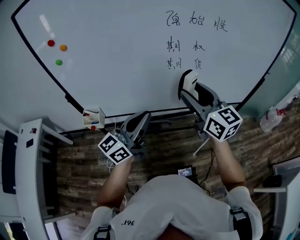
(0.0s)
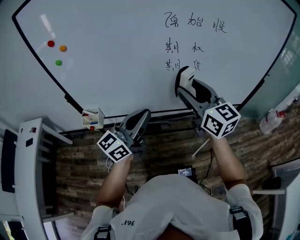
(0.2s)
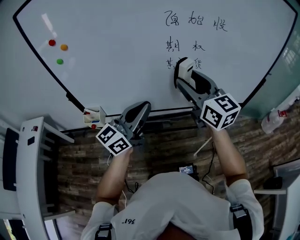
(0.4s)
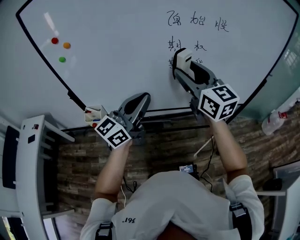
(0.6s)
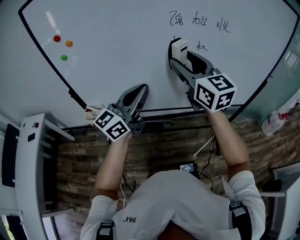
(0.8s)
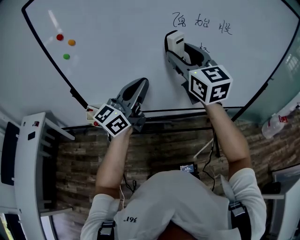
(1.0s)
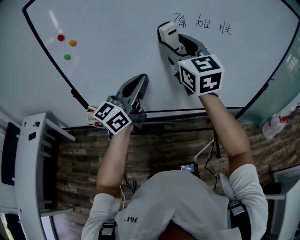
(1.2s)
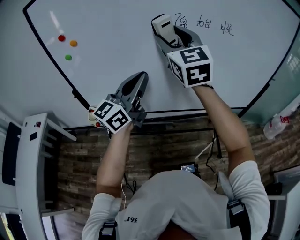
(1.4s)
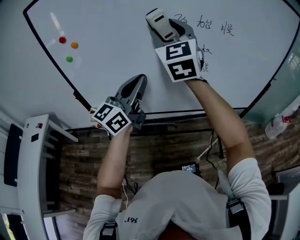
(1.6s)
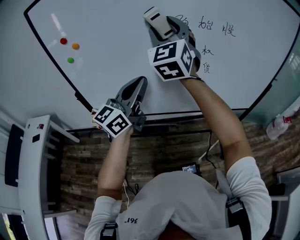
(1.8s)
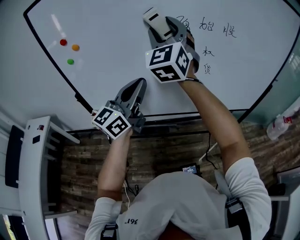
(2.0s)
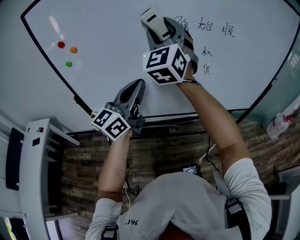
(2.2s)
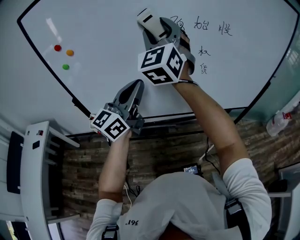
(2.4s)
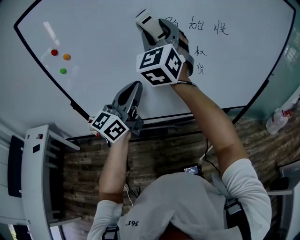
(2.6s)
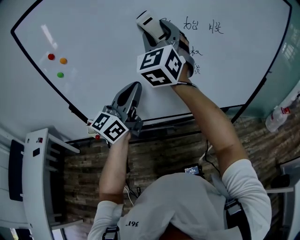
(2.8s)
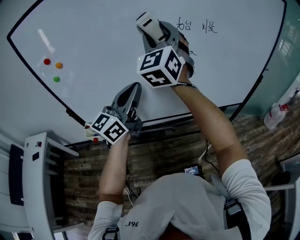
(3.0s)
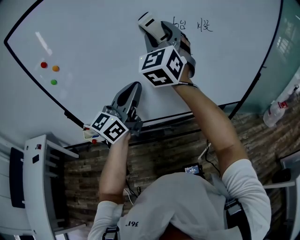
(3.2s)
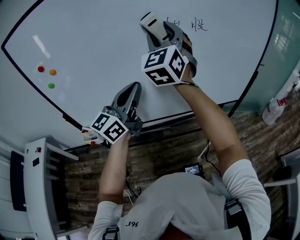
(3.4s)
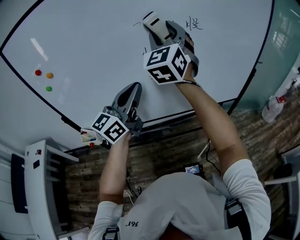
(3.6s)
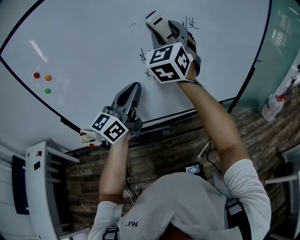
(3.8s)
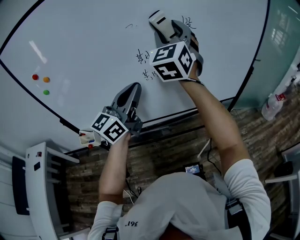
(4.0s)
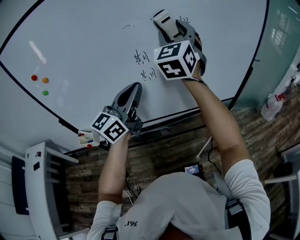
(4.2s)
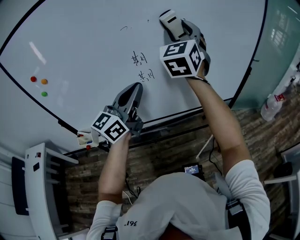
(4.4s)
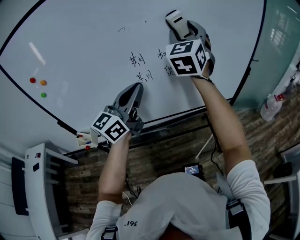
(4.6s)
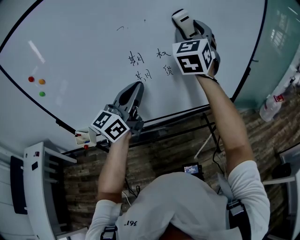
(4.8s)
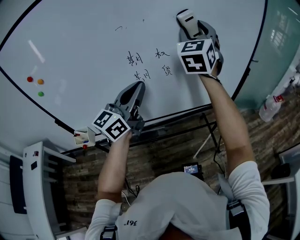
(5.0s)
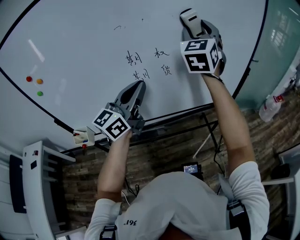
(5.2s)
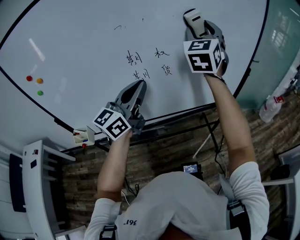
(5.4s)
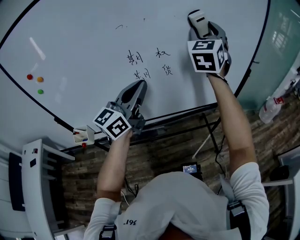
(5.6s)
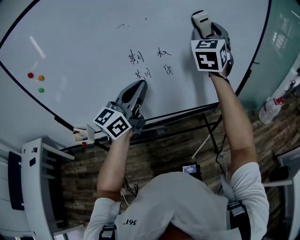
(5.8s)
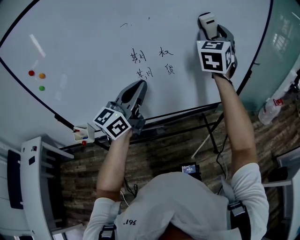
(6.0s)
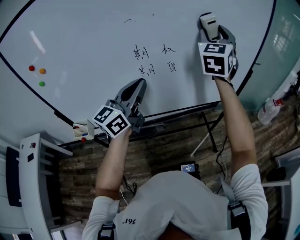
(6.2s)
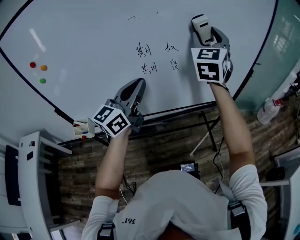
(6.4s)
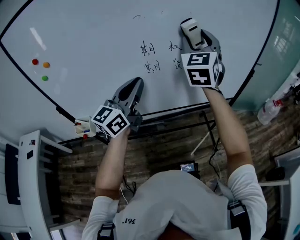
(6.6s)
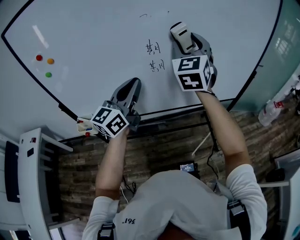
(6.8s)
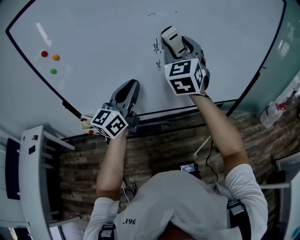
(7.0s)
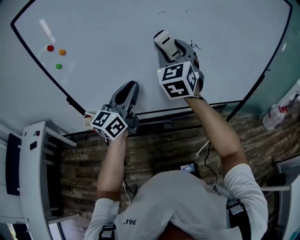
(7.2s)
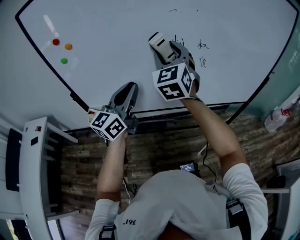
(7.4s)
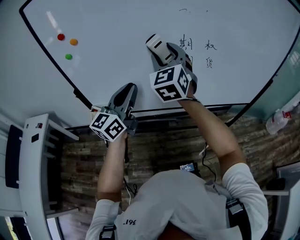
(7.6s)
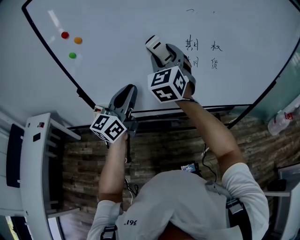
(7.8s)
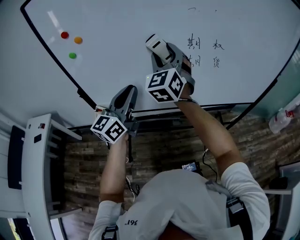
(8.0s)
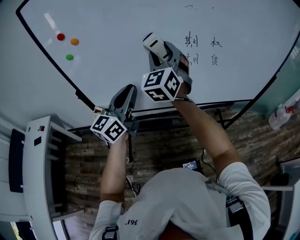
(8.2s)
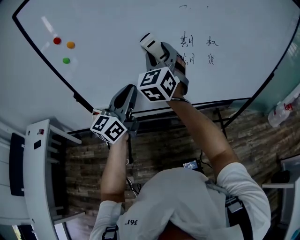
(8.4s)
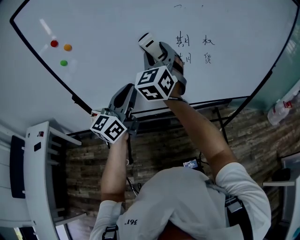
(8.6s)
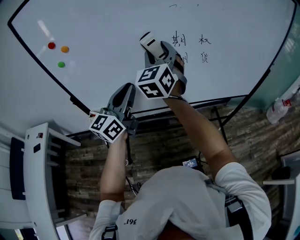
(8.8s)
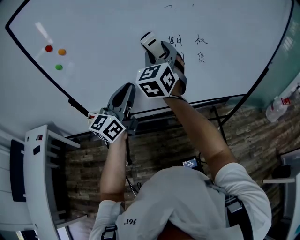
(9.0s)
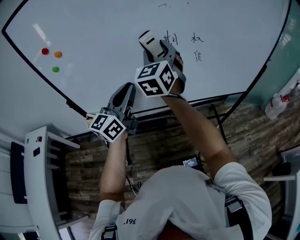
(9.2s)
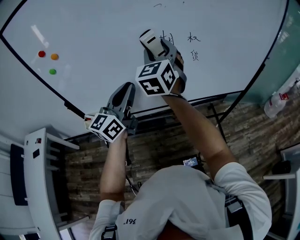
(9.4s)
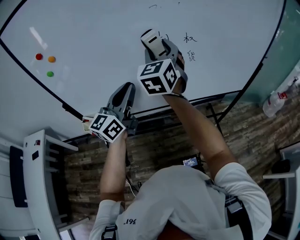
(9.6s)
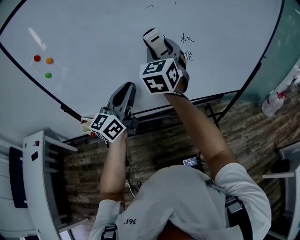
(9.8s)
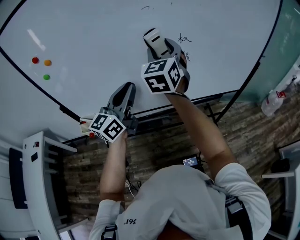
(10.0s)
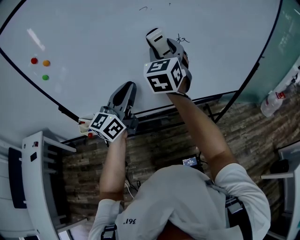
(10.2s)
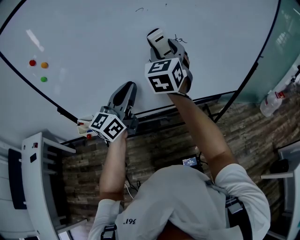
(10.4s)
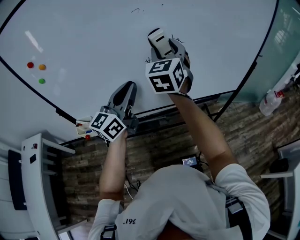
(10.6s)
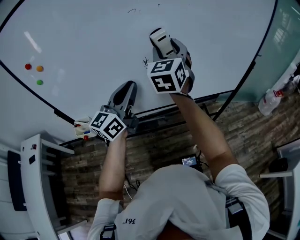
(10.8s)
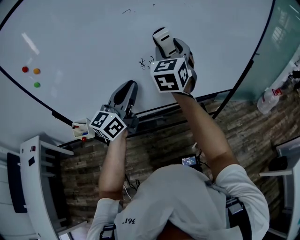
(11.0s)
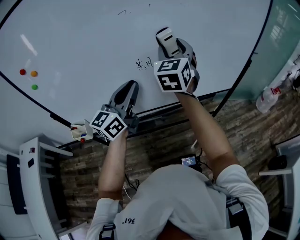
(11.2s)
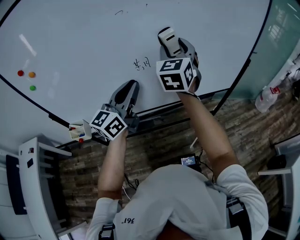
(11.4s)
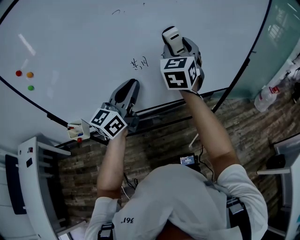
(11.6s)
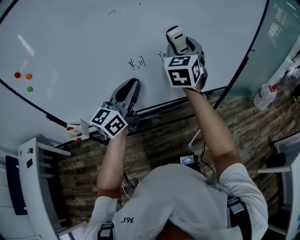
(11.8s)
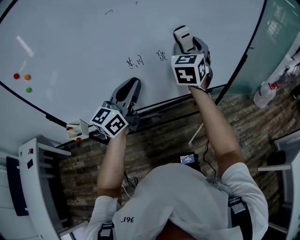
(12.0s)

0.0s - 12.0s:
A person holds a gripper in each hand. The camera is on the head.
0.0s - 1.6s: The left gripper is displaced upward and forward by some 10 cm. The right gripper heads upward, to the left and forward, covering approximately 25 cm, and turns by approximately 40 degrees.
1.6s - 3.0s: The right gripper shifts by approximately 5 cm.
3.0s - 4.4s: The right gripper goes about 20 cm to the right and forward; the left gripper travels to the right by about 10 cm.
4.4s - 6.0s: The right gripper heads to the right and forward, covering some 15 cm.
6.0s - 7.6s: The left gripper is displaced to the left and backward by some 20 cm. Meanwhile the right gripper moves to the left and backward, about 35 cm, and swivels roughly 30 degrees.
7.6s - 9.0s: The grippers move only a little.
9.0s - 10.4s: Both grippers move to the right, roughly 10 cm.
10.4s - 12.0s: The right gripper goes about 20 cm to the right and forward; the left gripper travels to the right by roughly 10 cm.

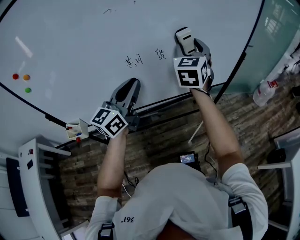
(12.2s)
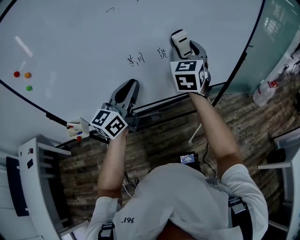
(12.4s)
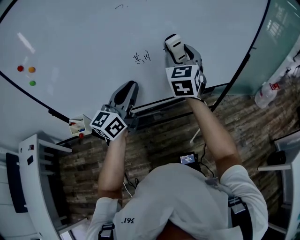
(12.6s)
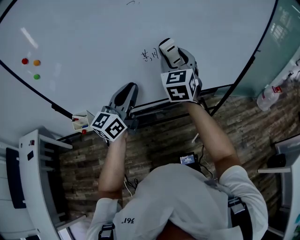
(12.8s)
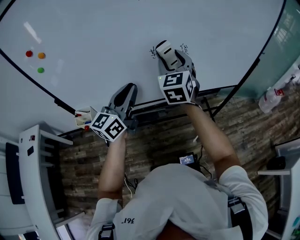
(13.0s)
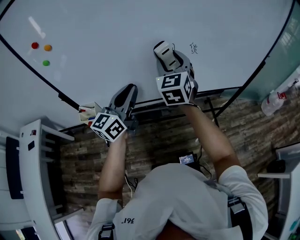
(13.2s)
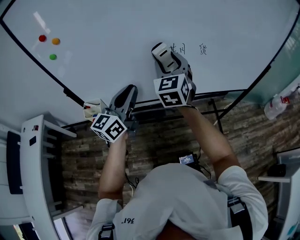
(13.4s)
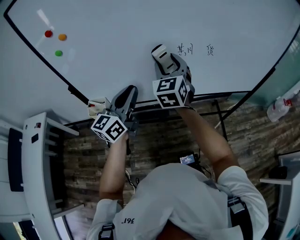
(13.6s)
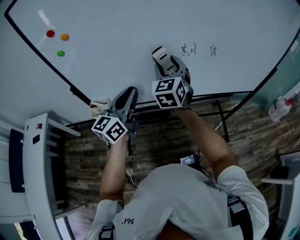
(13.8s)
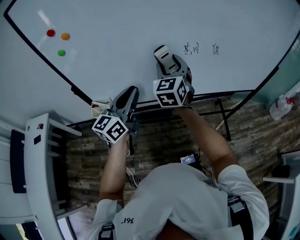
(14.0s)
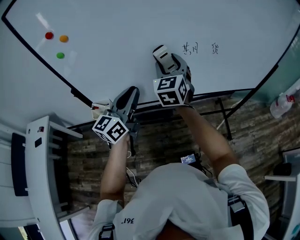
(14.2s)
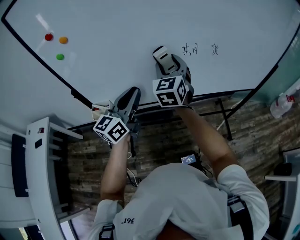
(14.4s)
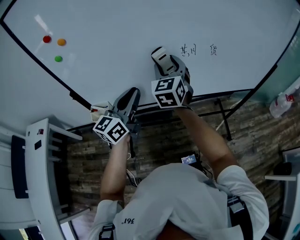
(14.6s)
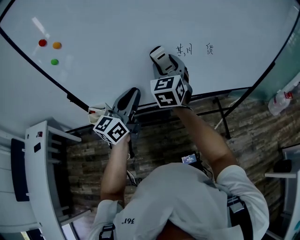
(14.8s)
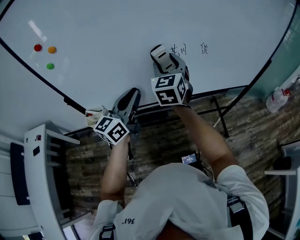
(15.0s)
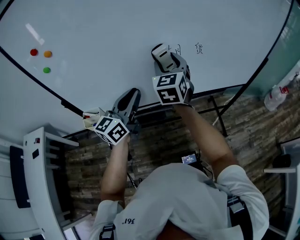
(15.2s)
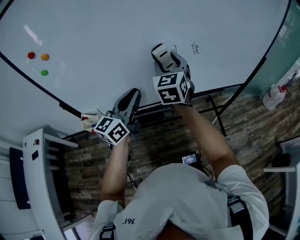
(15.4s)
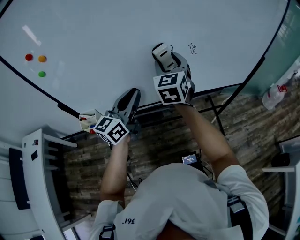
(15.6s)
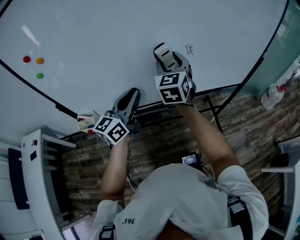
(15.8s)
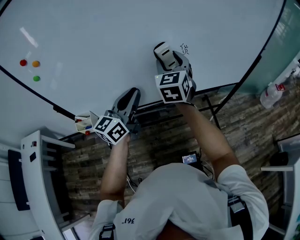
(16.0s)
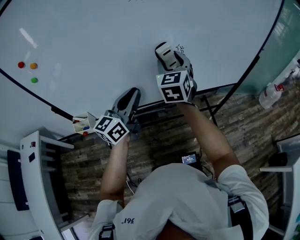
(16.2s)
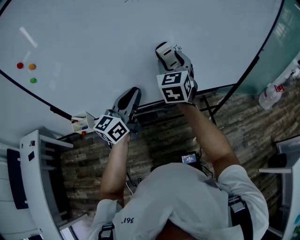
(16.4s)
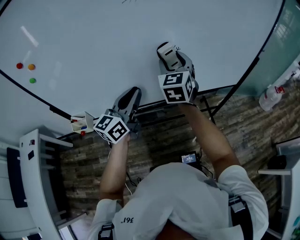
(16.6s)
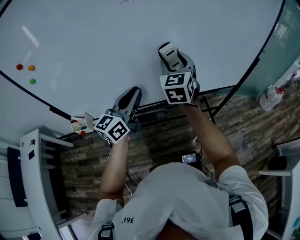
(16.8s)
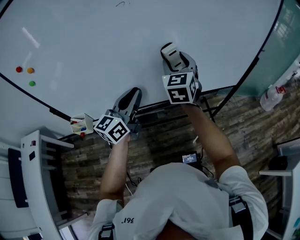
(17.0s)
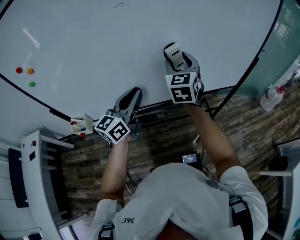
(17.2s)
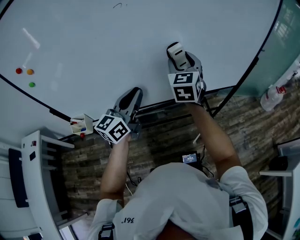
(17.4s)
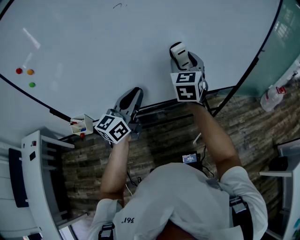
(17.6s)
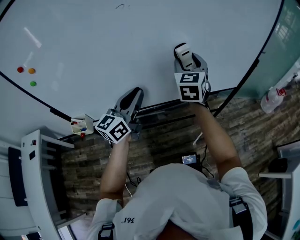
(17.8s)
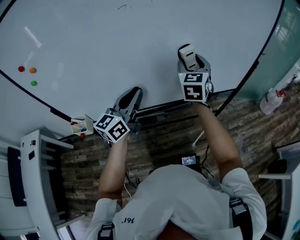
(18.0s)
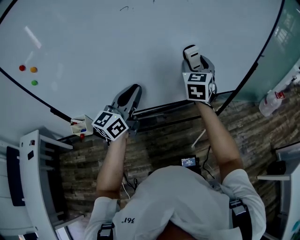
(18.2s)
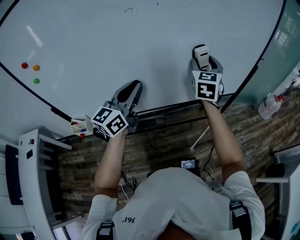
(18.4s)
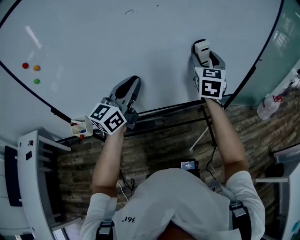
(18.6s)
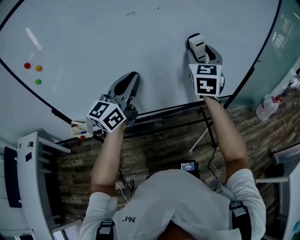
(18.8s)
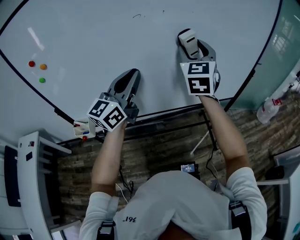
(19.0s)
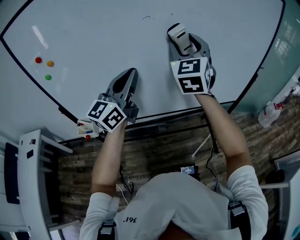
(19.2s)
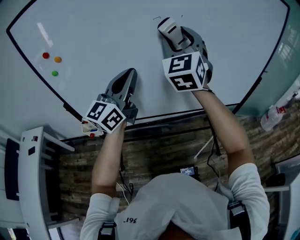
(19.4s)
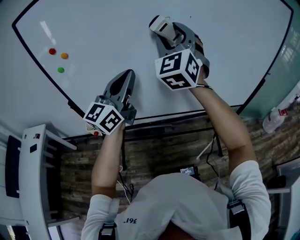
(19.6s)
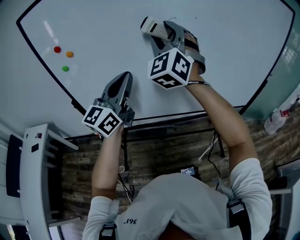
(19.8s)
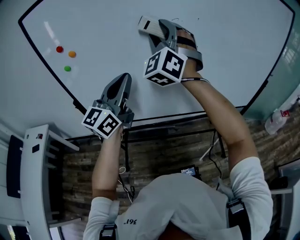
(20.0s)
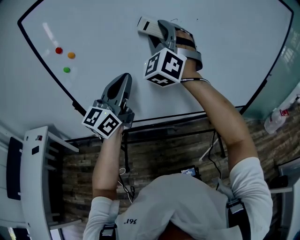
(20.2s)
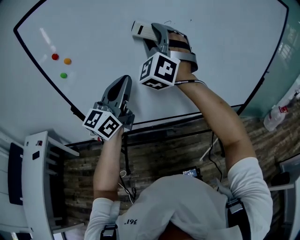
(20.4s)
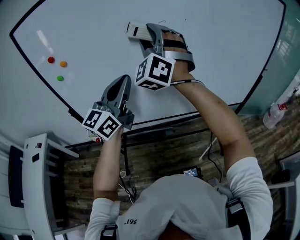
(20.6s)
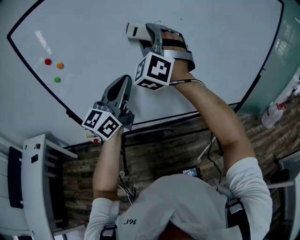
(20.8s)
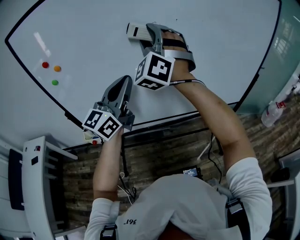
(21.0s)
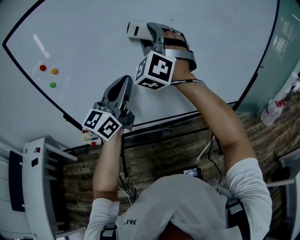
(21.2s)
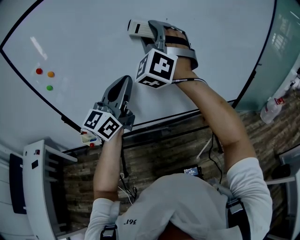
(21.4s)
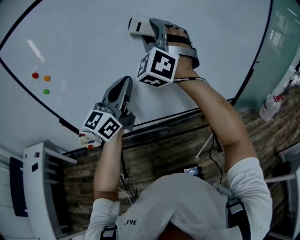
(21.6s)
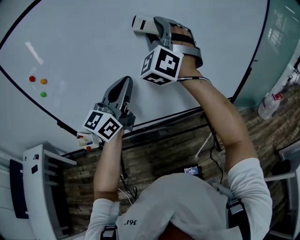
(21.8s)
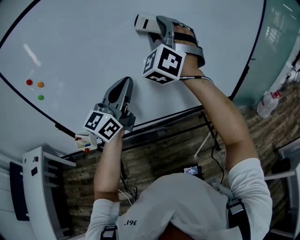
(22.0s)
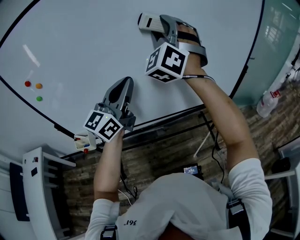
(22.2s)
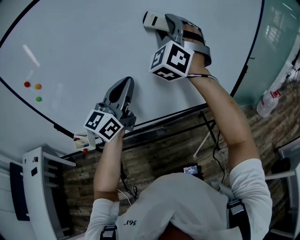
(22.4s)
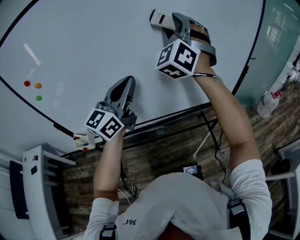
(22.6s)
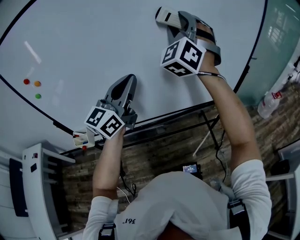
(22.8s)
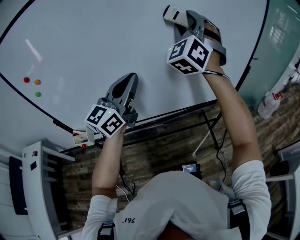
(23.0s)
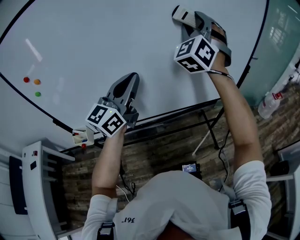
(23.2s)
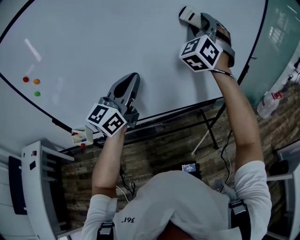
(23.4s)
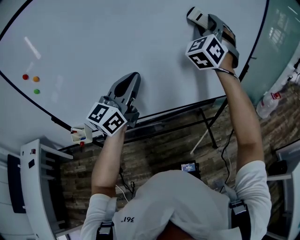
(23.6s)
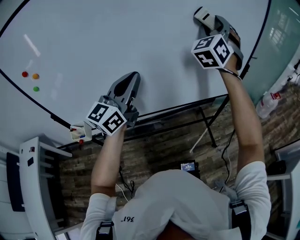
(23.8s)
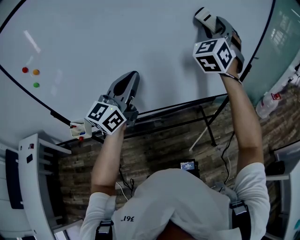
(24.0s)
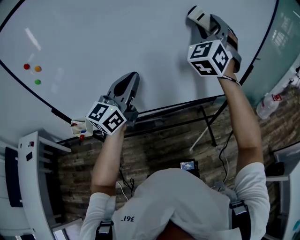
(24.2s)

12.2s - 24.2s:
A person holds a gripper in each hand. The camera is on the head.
12.2s - 13.8s: The right gripper heads to the left, covering roughly 30 cm. Meanwhile the left gripper moves to the left and backward, about 20 cm.
13.8s - 15.2s: Both grippers travel together to the right, roughly 5 cm.
15.2s - 16.6s: The two grippers go roughly 10 cm to the right.
16.6s - 18.2s: The right gripper travels to the right by roughly 10 cm.
18.2s - 19.8s: The left gripper shifts approximately 20 cm upward, to the left and backward; the right gripper heads to the left, upward and backward, covering some 35 cm, and swivels about 40 degrees.
19.8s - 21.2s: The left gripper is displaced to the right by about 5 cm.
21.2s - 22.6s: The left gripper is displaced to the right by about 10 cm. The right gripper travels to the right and forward by some 15 cm.
22.6s - 24.2s: The right gripper goes approximately 10 cm to the right.
